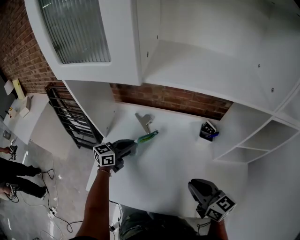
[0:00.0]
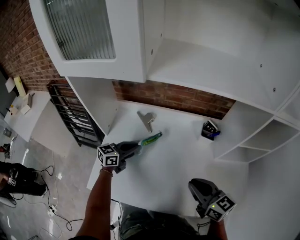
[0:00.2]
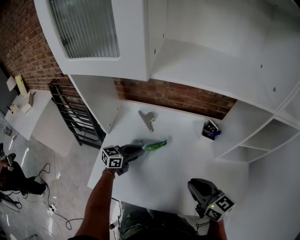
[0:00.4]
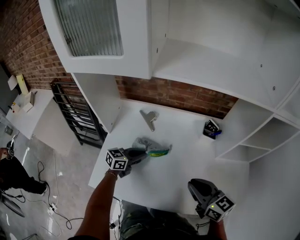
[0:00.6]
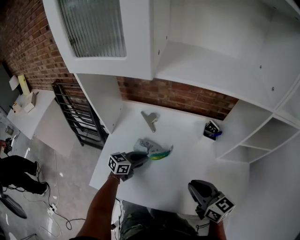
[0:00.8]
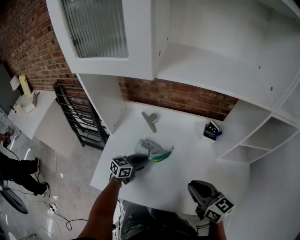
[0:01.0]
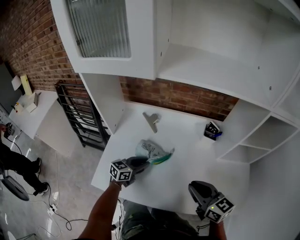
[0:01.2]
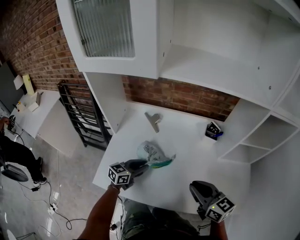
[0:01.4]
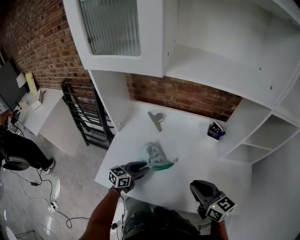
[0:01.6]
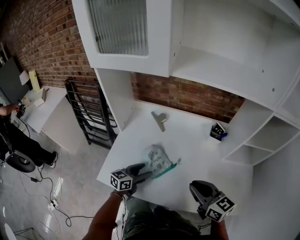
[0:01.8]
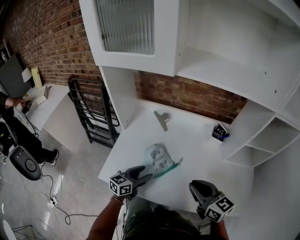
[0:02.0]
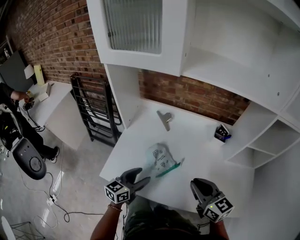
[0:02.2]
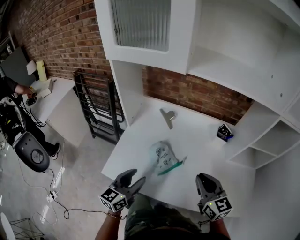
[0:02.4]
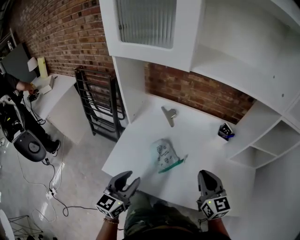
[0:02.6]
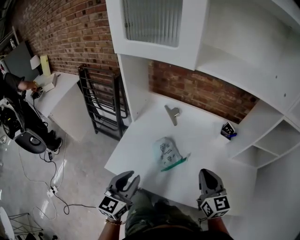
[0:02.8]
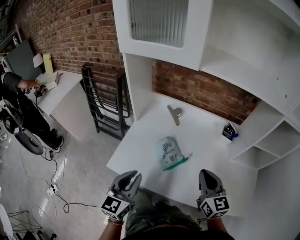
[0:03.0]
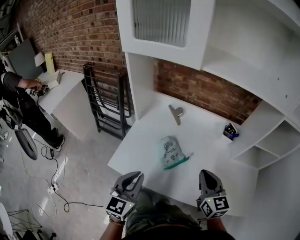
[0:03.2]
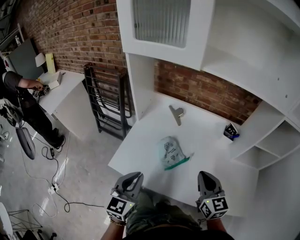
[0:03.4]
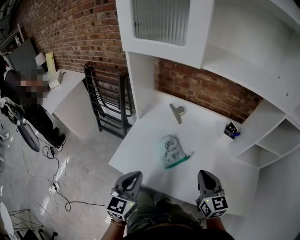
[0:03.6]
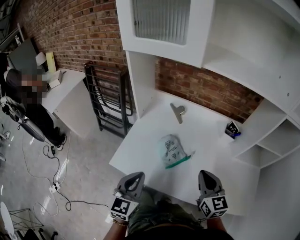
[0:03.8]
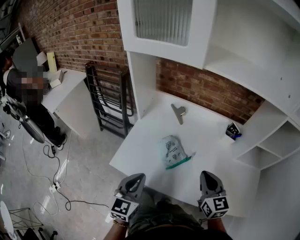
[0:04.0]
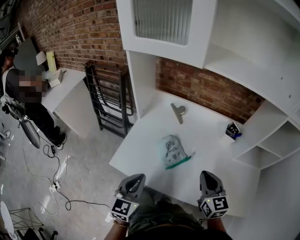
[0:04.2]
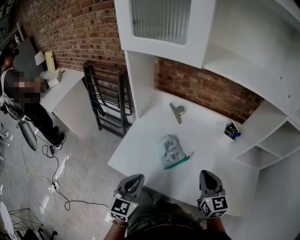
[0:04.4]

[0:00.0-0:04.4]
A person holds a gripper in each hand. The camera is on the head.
0:00.0 to 0:01.4: The left gripper goes some 15 cm backward and downward.
0:01.4 to 0:03.0: The left gripper goes roughly 25 cm backward, upward and to the left, changes its angle by approximately 40 degrees, and opens and closes again.
0:03.0 to 0:04.4: The grippers make only small movements.

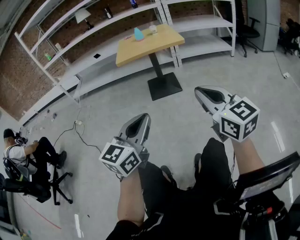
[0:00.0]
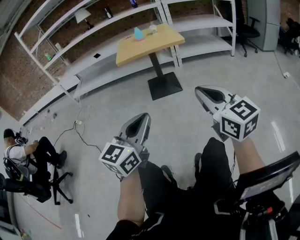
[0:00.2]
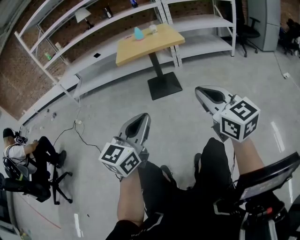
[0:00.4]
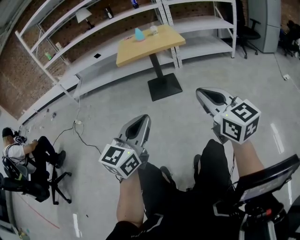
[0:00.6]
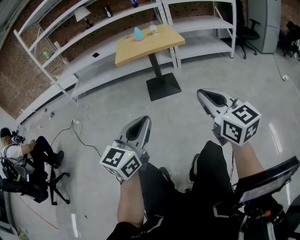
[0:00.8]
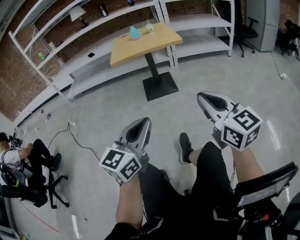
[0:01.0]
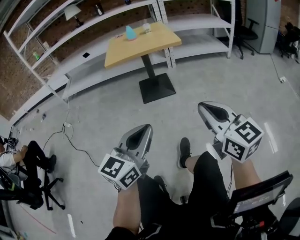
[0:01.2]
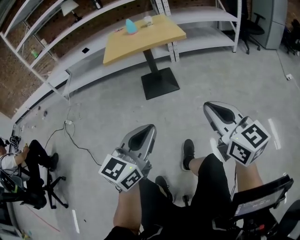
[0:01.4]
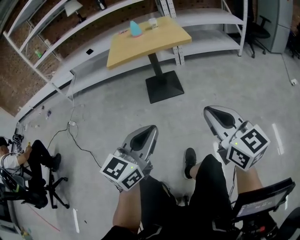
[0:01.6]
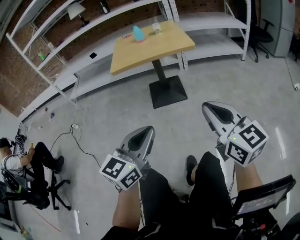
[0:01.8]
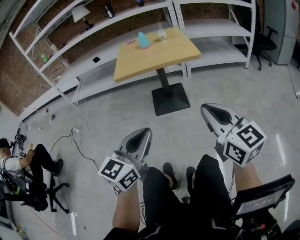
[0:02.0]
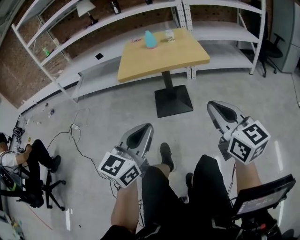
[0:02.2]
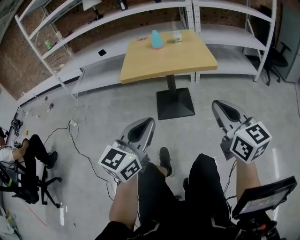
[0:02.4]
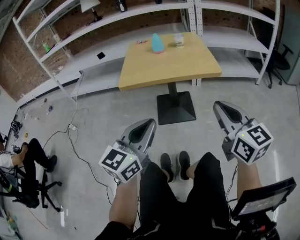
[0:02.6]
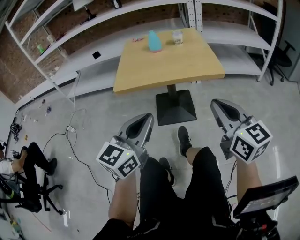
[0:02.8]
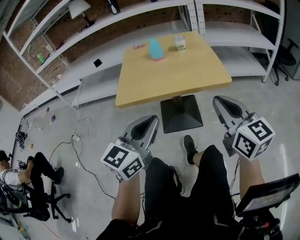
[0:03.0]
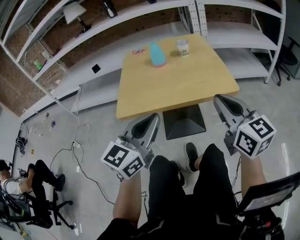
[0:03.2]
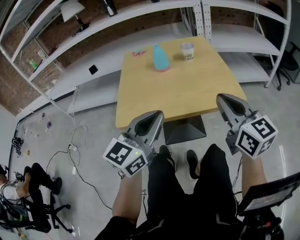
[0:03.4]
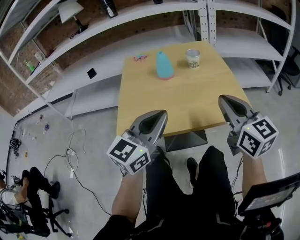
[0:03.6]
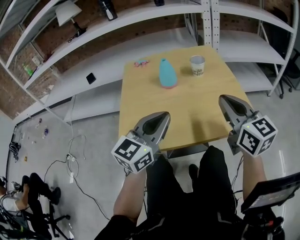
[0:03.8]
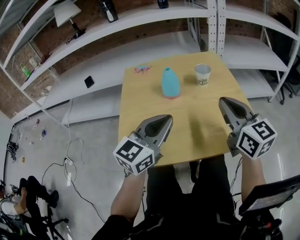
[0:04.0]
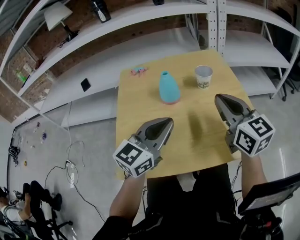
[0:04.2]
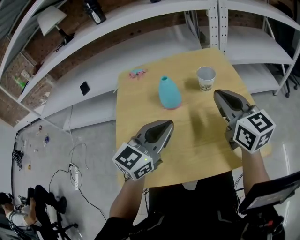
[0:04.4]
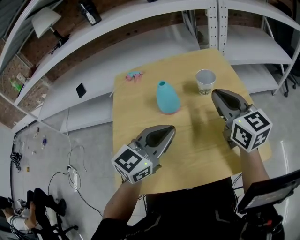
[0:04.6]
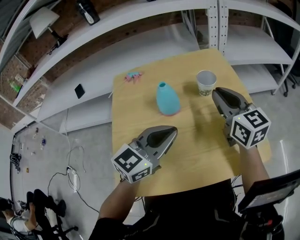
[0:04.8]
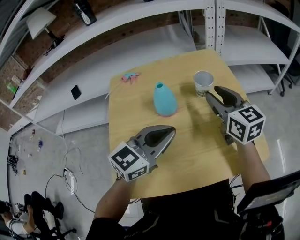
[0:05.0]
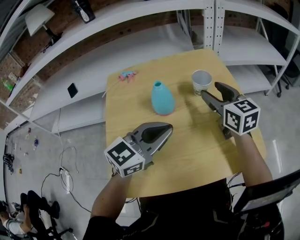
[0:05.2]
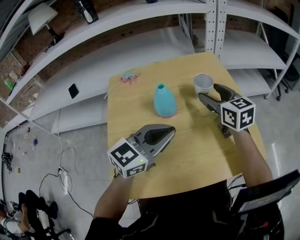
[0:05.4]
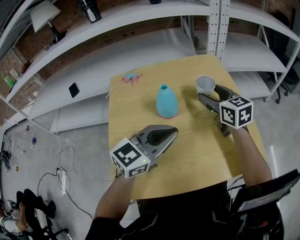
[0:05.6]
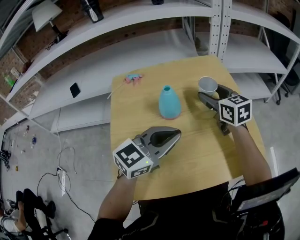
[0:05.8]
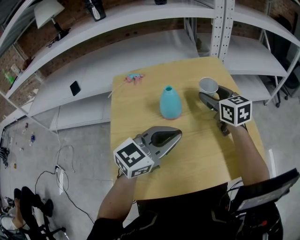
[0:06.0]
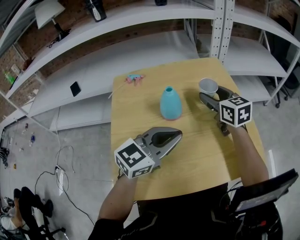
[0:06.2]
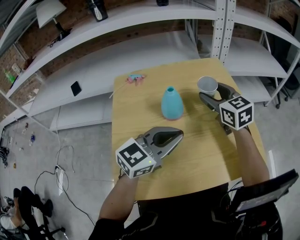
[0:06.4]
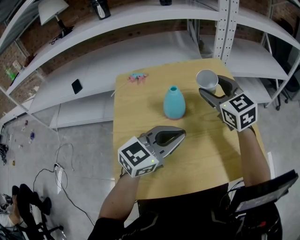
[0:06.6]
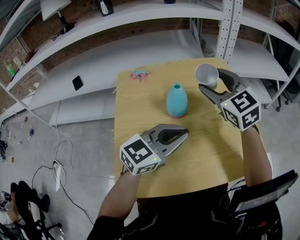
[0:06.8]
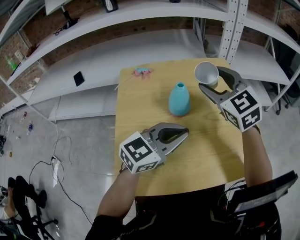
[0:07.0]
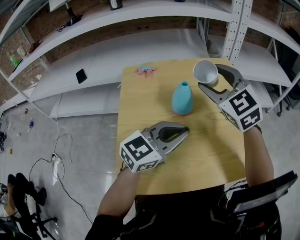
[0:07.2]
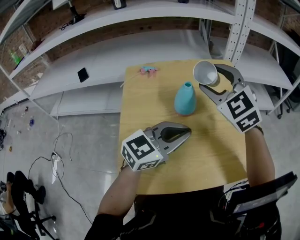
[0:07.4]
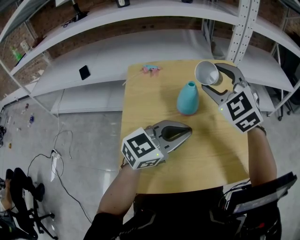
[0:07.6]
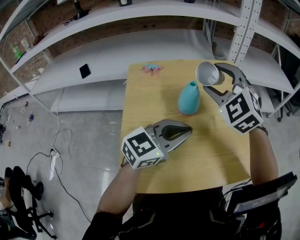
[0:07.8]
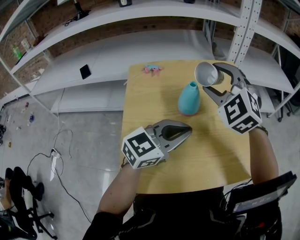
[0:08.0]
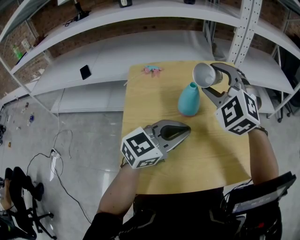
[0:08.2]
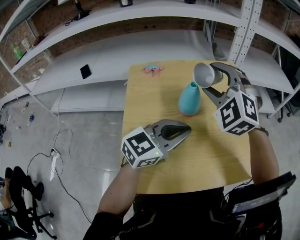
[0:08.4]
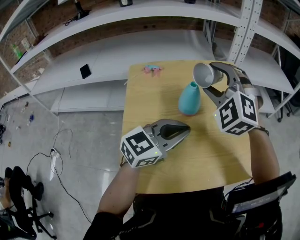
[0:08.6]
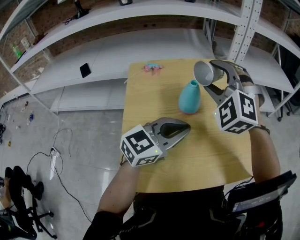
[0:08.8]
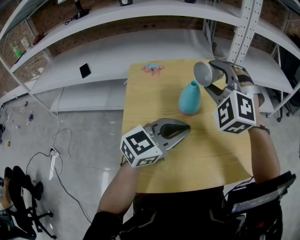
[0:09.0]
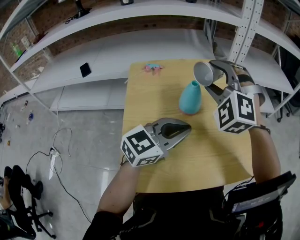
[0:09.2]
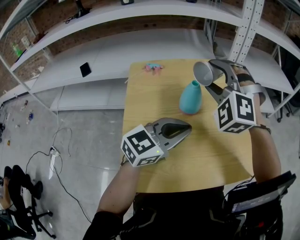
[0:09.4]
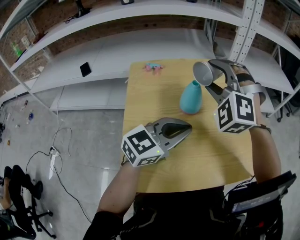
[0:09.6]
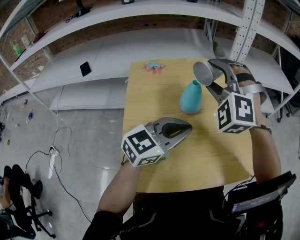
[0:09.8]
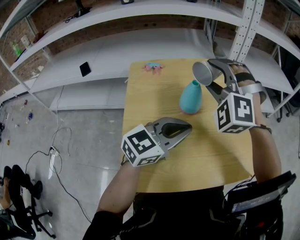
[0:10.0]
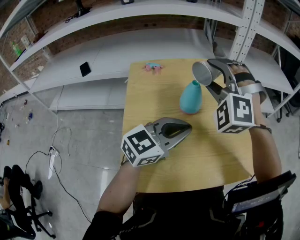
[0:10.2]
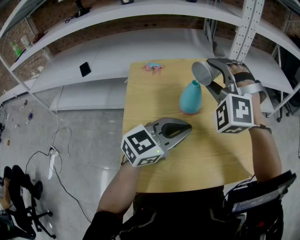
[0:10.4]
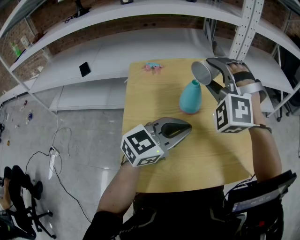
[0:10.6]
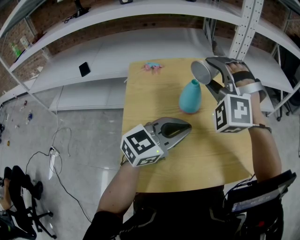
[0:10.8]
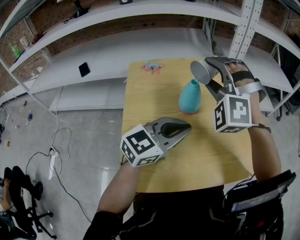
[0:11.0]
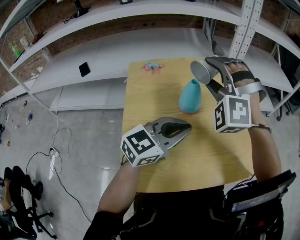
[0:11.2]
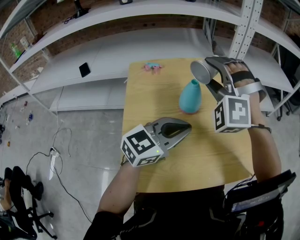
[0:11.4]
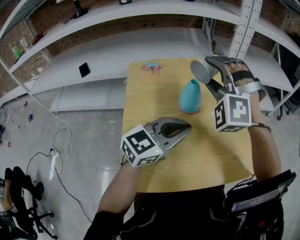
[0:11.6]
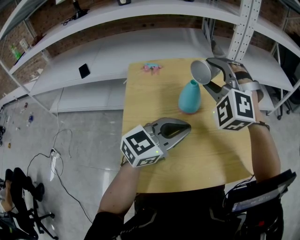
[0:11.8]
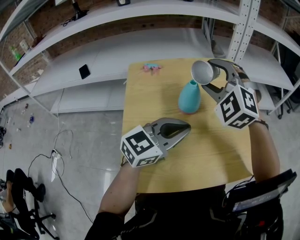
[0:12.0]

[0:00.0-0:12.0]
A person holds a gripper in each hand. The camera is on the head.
0:00.0 to 0:01.6: The left gripper travels forward by about 15 cm. The right gripper goes approximately 15 cm forward and downward.
0:01.6 to 0:03.0: Both grippers travel together forward, some 40 cm.
0:03.0 to 0:04.4: Both grippers travel together forward, about 35 cm.
0:04.4 to 0:06.0: The right gripper goes about 15 cm forward and downward, and opens up.
0:06.0 to 0:07.6: The right gripper goes roughly 15 cm upward, to the left and backward, and rotates around the line of its fingers by approximately 50 degrees, counterclockwise from behind.
0:07.6 to 0:09.0: The right gripper rotates approximately 30 degrees.
0:09.0 to 0:10.4: The grippers make only small movements.
0:10.4 to 0:12.0: The right gripper rotates some 20 degrees.

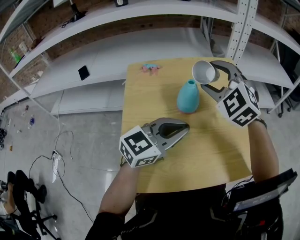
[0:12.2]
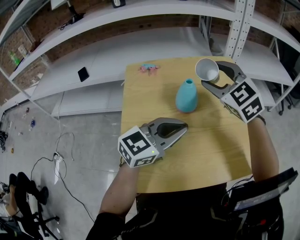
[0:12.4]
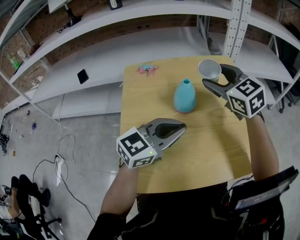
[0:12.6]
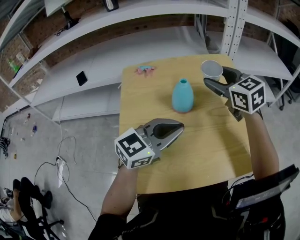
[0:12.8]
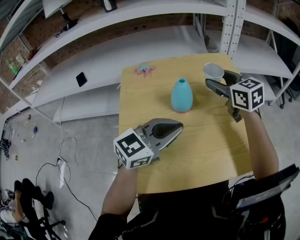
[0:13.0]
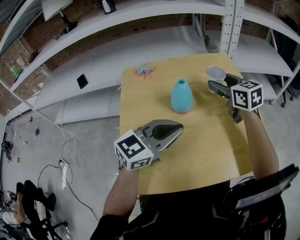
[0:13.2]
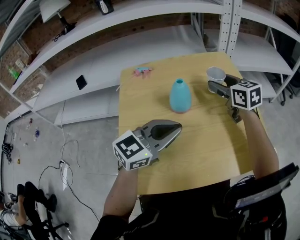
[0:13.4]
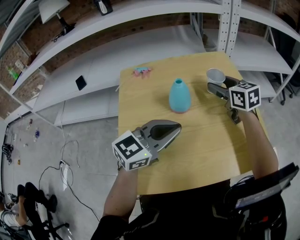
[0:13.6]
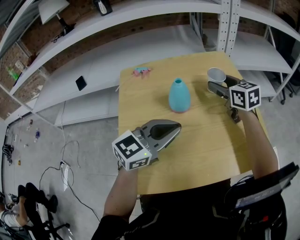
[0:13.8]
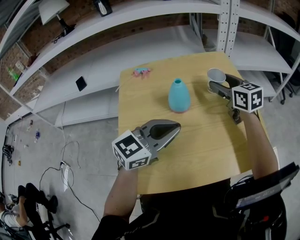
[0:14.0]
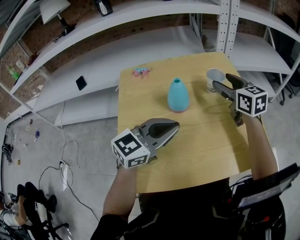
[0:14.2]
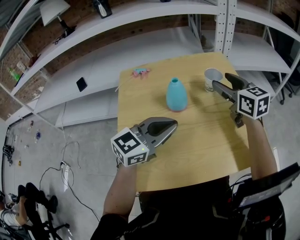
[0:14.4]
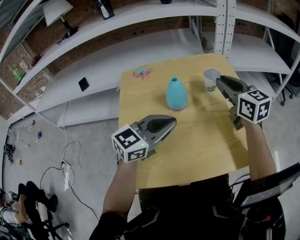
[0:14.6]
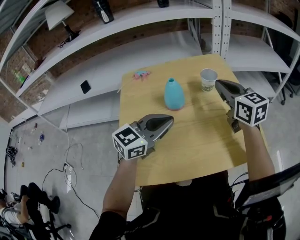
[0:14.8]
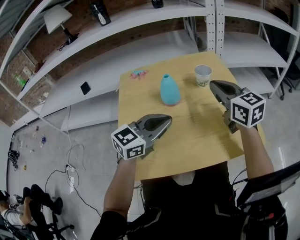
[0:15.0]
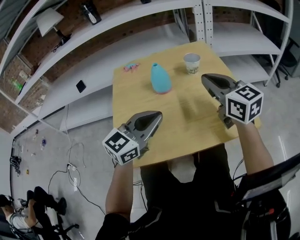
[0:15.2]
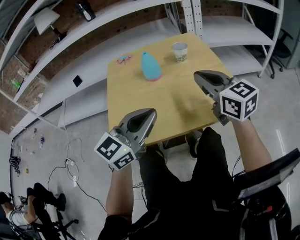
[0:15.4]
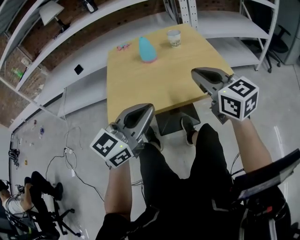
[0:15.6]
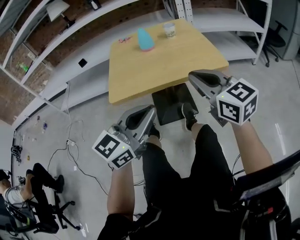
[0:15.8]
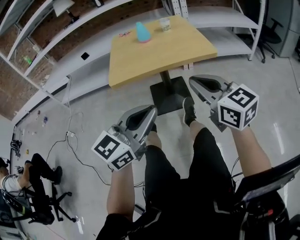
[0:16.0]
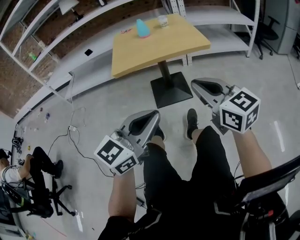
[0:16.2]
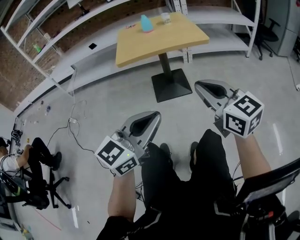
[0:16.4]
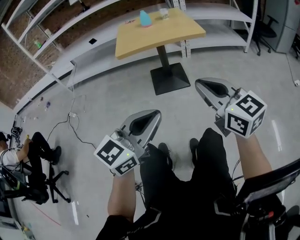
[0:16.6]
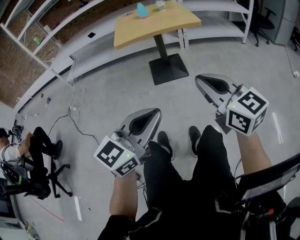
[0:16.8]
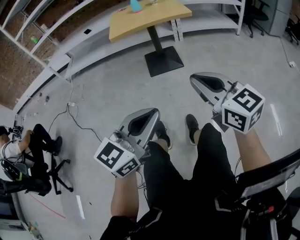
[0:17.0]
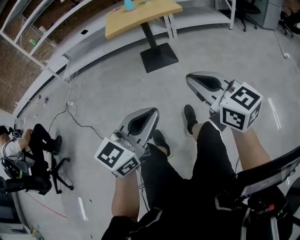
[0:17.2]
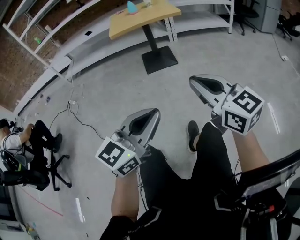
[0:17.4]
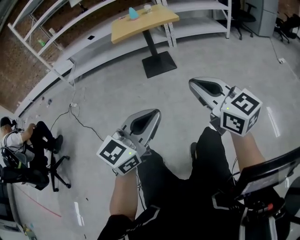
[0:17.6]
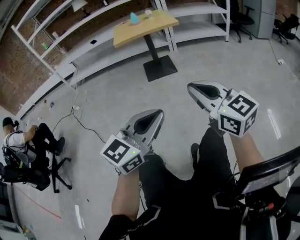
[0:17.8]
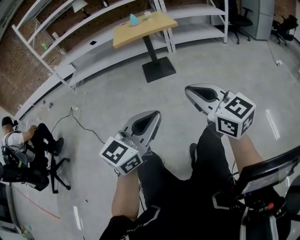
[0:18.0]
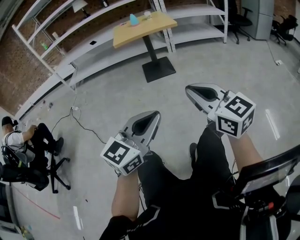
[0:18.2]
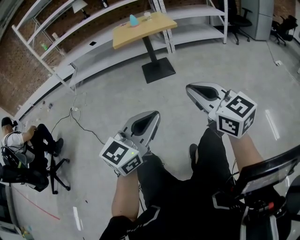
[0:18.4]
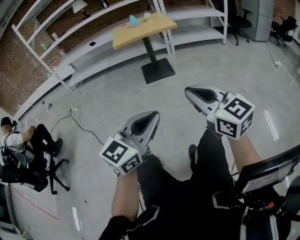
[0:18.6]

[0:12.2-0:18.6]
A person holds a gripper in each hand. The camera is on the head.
0:12.2 to 0:13.8: The right gripper goes about 15 cm to the right, downward and forward, and rotates around the line of its fingers by approximately 60 degrees, clockwise from behind.
0:13.8 to 0:15.4: The left gripper goes about 15 cm backward and to the right; the right gripper is displaced backward by about 25 cm, and closes.
0:15.4 to 0:17.0: The pair of grippers is taken backward, some 70 cm.
0:17.0 to 0:18.6: Both grippers move backward, roughly 20 cm.

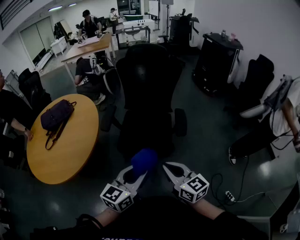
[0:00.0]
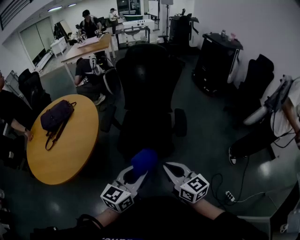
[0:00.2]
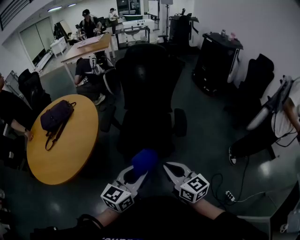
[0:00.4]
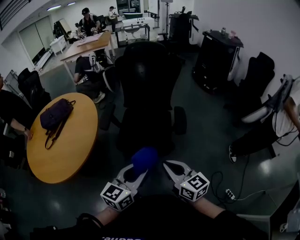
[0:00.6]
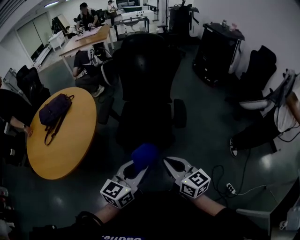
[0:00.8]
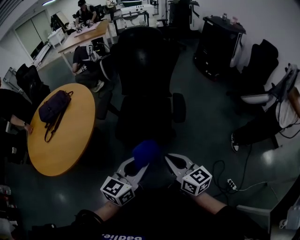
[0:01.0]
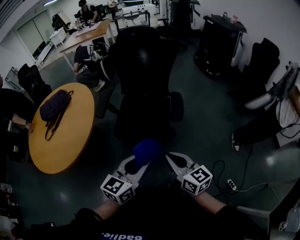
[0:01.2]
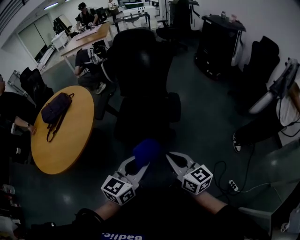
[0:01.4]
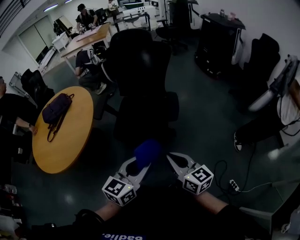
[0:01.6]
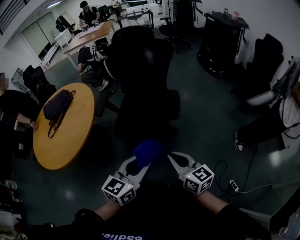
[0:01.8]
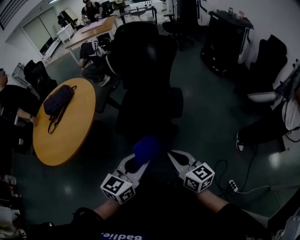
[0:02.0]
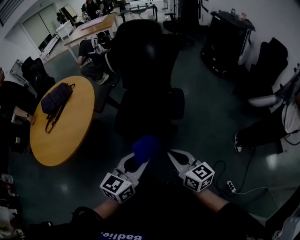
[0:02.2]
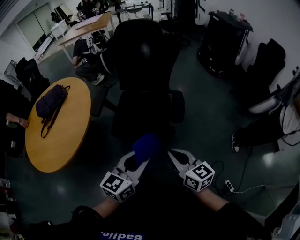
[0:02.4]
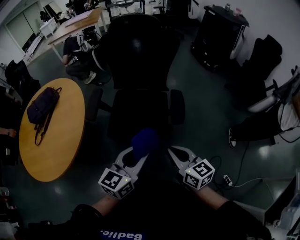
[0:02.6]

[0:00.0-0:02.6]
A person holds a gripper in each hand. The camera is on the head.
0:00.0 to 0:01.2: The two grippers go roughly 5 cm to the right.
0:01.2 to 0:02.6: The grippers both shift forward by roughly 10 cm.
